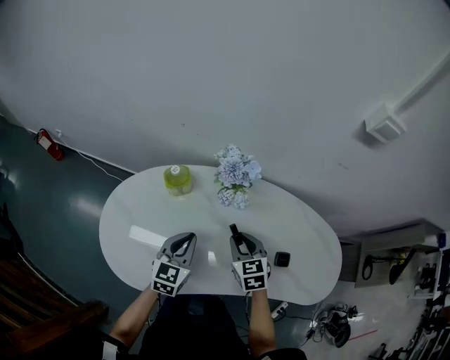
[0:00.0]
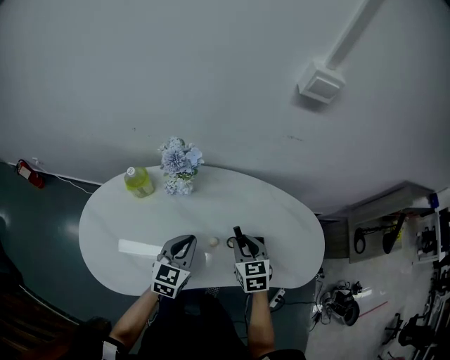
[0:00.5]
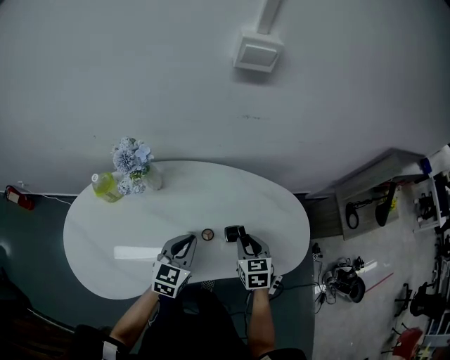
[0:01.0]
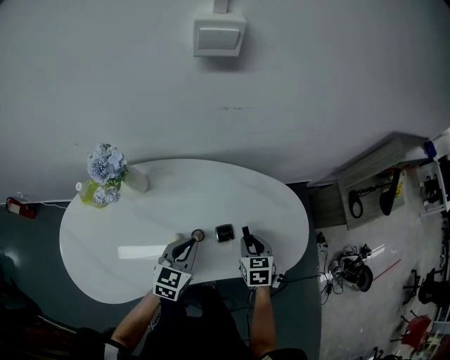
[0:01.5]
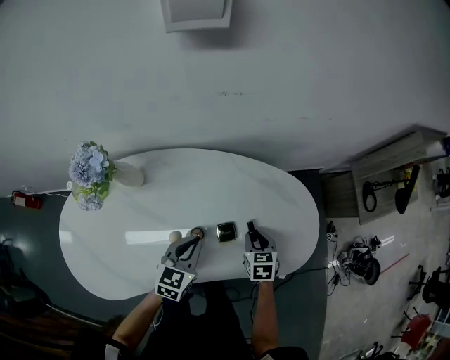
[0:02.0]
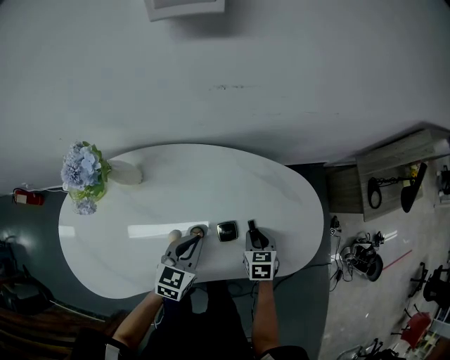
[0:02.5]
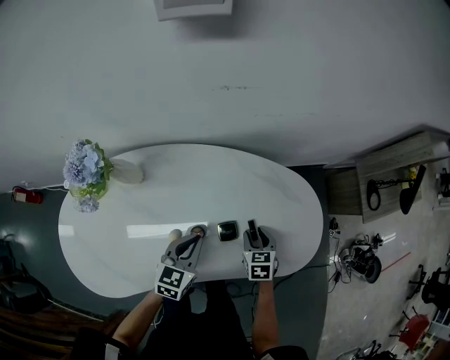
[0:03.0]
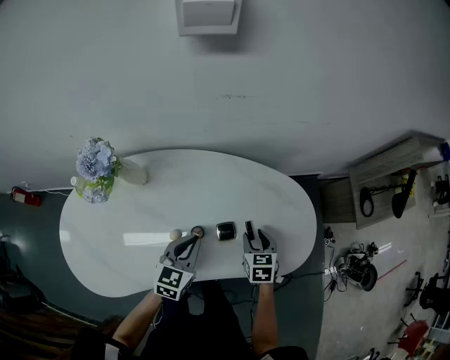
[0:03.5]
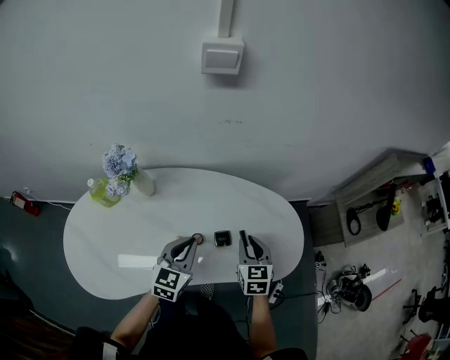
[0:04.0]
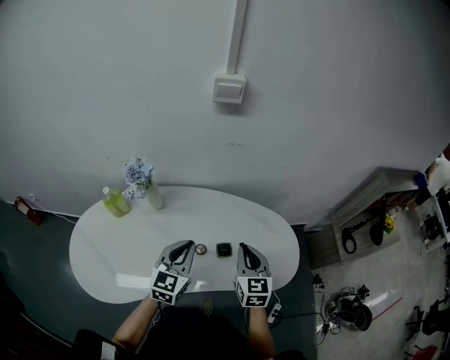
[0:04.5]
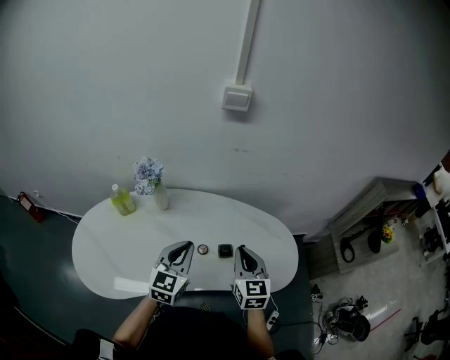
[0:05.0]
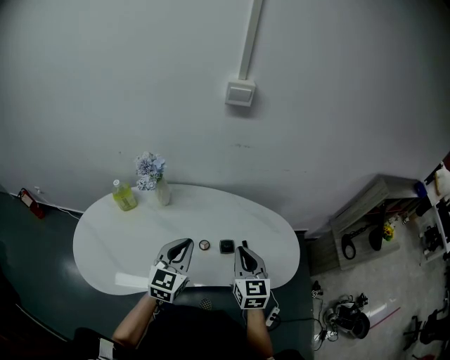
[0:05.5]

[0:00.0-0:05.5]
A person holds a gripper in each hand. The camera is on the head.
0:00.0 to 0:02.0: The right gripper moves approximately 40 cm, and rotates about 40 degrees. The left gripper changes place by some 35 cm, and turns by roughly 30 degrees.
0:02.0 to 0:03.5: The grippers stay close to where they were, moving slightly.
0:03.5 to 0:05.5: Both grippers move upward and backward, about 25 cm. The left gripper swivels some 20 degrees. The right gripper angles its fingers upward, by some 30 degrees, and closes its fingers.

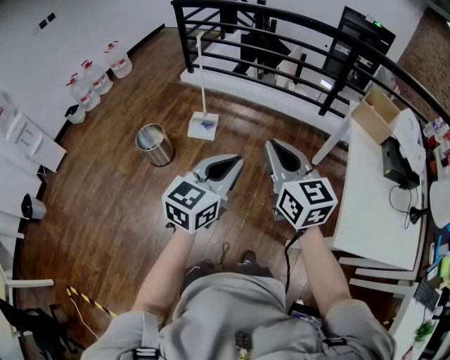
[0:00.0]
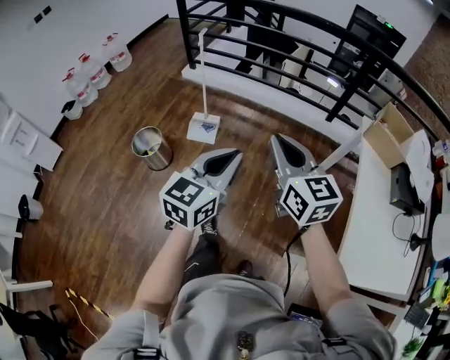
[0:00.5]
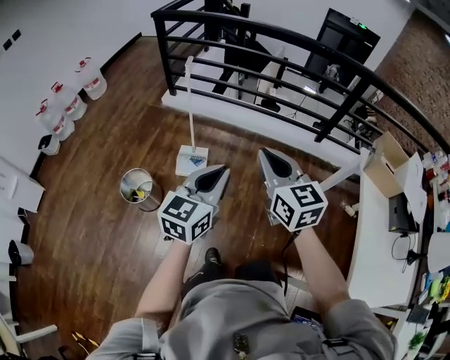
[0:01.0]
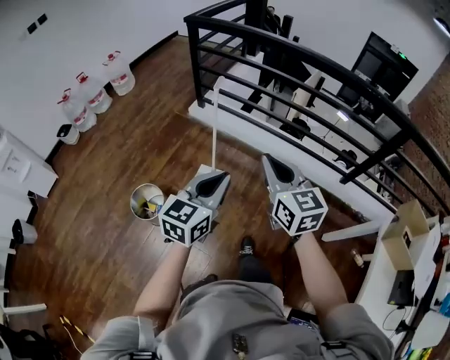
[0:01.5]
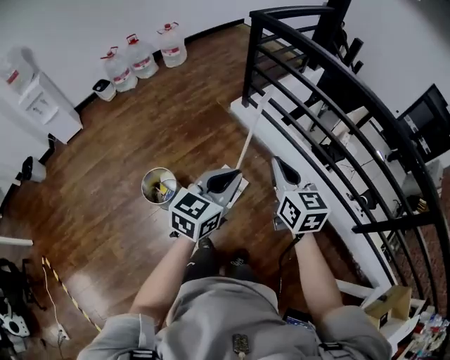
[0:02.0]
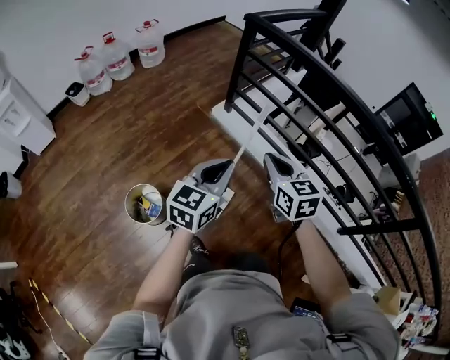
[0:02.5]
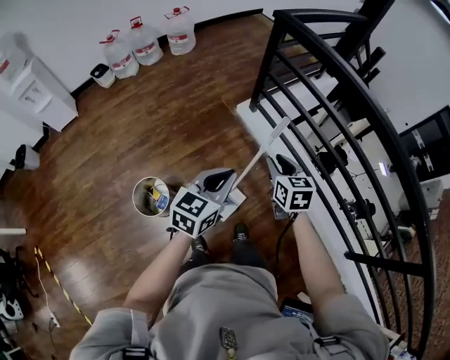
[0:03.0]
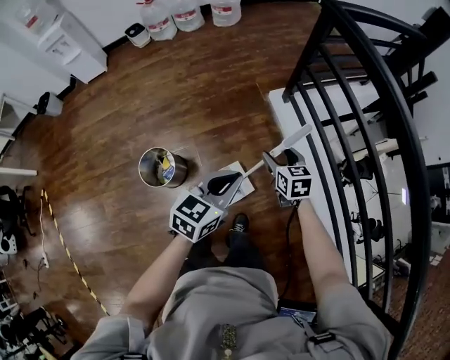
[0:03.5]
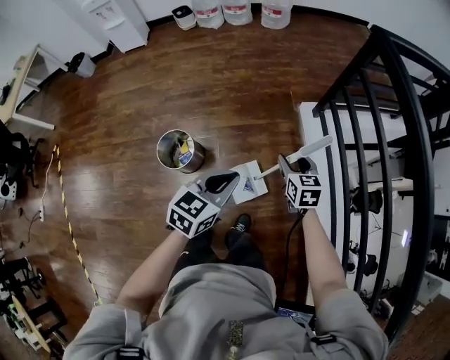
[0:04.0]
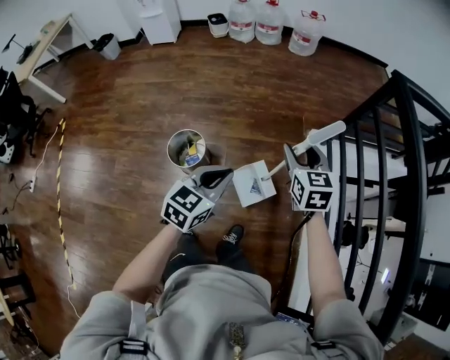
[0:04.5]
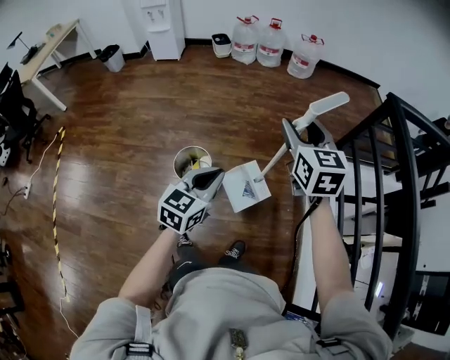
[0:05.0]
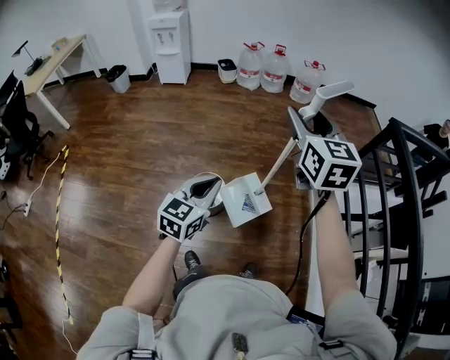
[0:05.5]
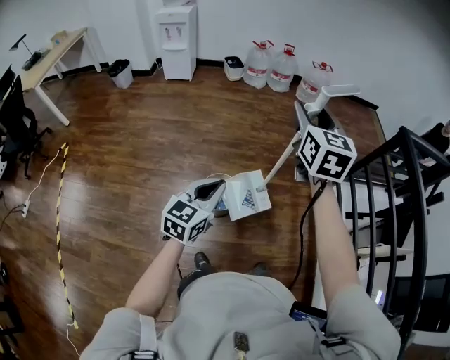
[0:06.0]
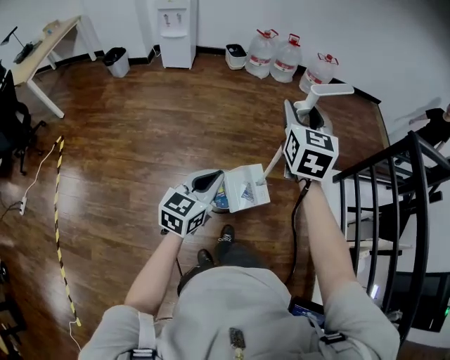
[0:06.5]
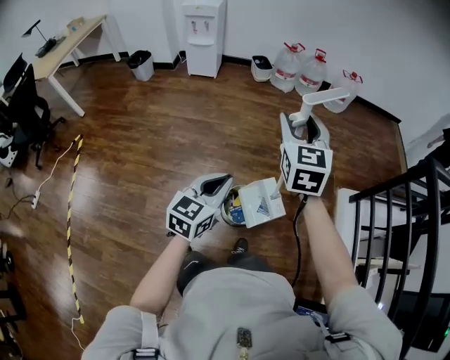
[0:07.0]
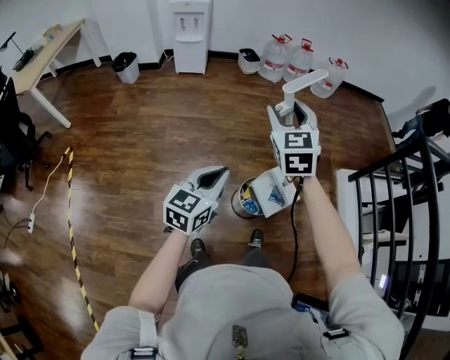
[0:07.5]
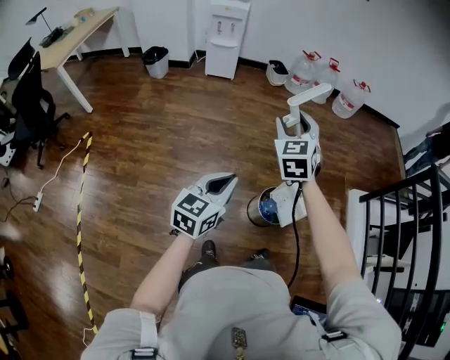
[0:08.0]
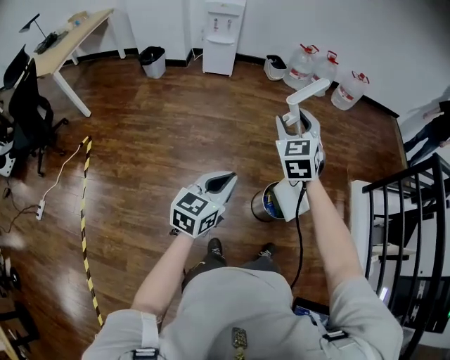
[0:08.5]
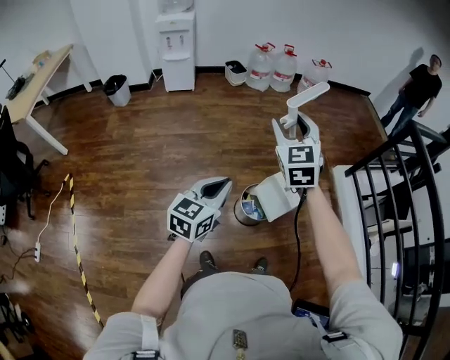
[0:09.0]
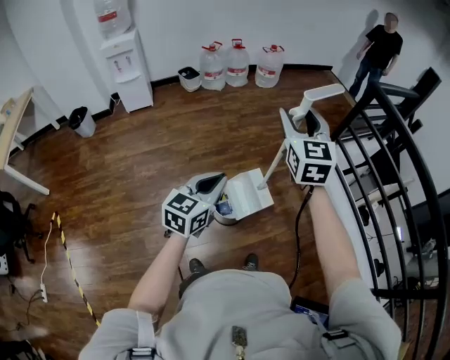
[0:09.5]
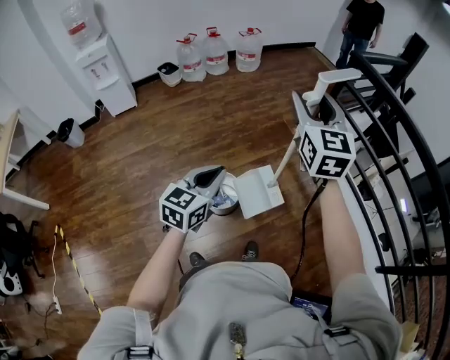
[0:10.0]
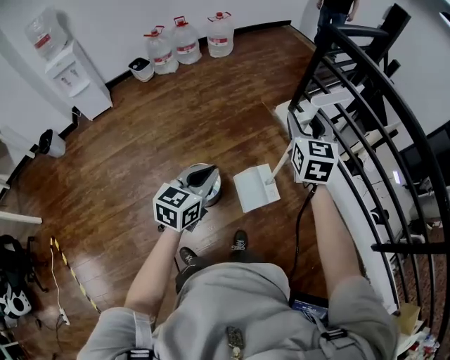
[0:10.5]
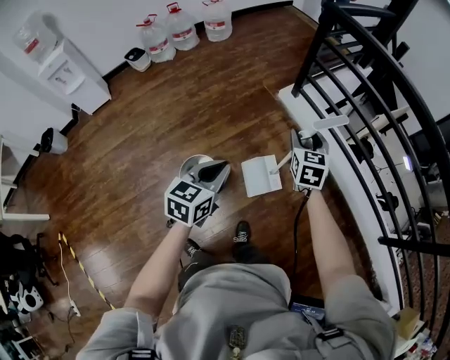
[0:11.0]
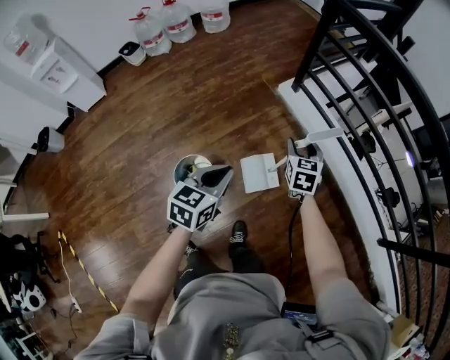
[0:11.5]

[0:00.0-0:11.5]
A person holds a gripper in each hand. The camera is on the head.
0:00.0 to 0:02.0: The pair of grippers is taken forward, some 70 cm. The left gripper turns by approximately 30 degrees. The right gripper swivels about 20 degrees.
0:02.0 to 0:04.0: The right gripper moves approximately 40 cm, rotates some 40 degrees, and opens up. The left gripper moves roughly 25 cm, and rotates roughly 30 degrees.
0:04.0 to 0:06.0: The pair of grippers is taken to the left, some 40 cm. The right gripper goes approximately 40 cm upward, and rotates about 30 degrees. The left gripper turns by about 20 degrees.
0:06.0 to 0:07.5: Both grippers travel together to the left, approximately 30 cm. The right gripper swivels some 20 degrees.
0:07.5 to 0:09.5: The left gripper goes some 15 cm to the right. The right gripper shifts some 25 cm to the right, and rotates roughly 20 degrees.
0:09.5 to 0:11.5: The right gripper moves to the right, downward and forward, some 50 cm, and changes its angle by roughly 40 degrees. The left gripper heads to the right, forward and downward, covering some 35 cm, and swivels about 20 degrees.

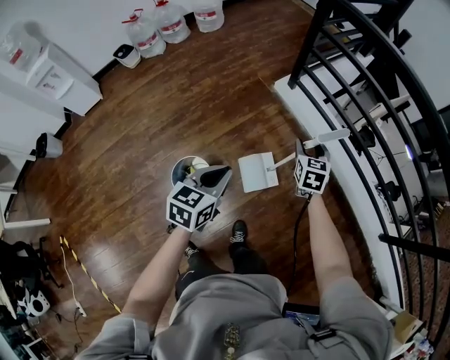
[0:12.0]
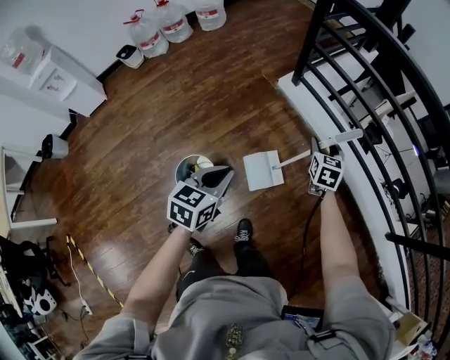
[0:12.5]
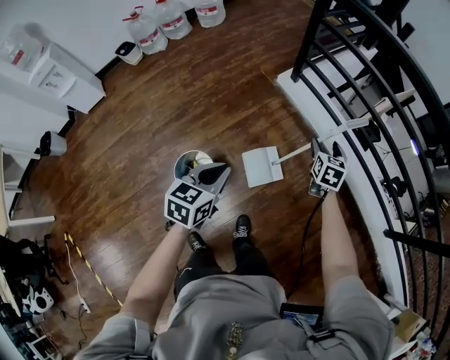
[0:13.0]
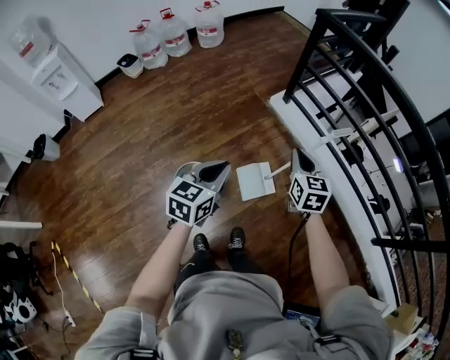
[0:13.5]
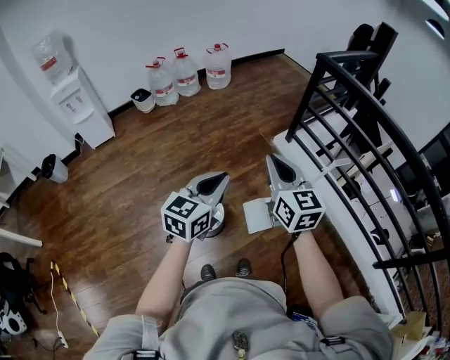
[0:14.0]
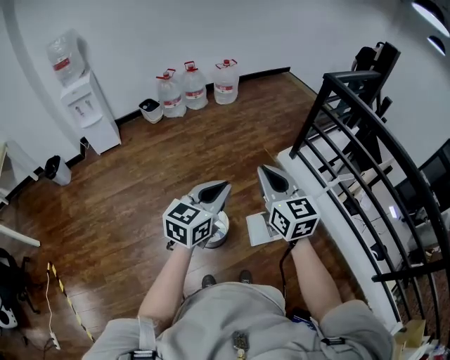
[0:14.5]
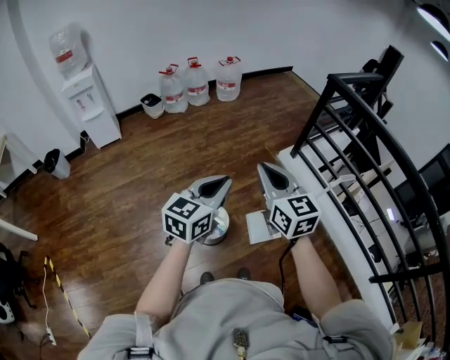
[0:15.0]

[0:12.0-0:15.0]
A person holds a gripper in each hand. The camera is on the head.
0:12.0 to 0:13.5: The right gripper heads upward, backward and to the left, covering approximately 15 cm, and closes. Meanwhile the left gripper goes about 5 cm upward.
0:13.5 to 0:15.0: The left gripper heads upward and to the left, covering approximately 20 cm; the right gripper moves to the left and upward, about 30 cm, and rotates roughly 30 degrees.

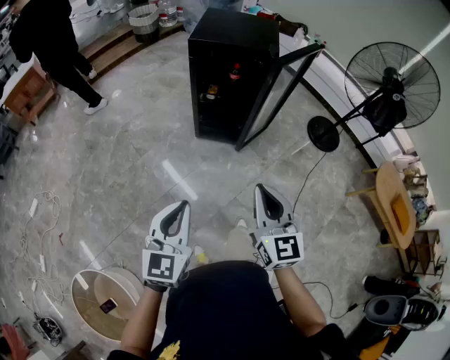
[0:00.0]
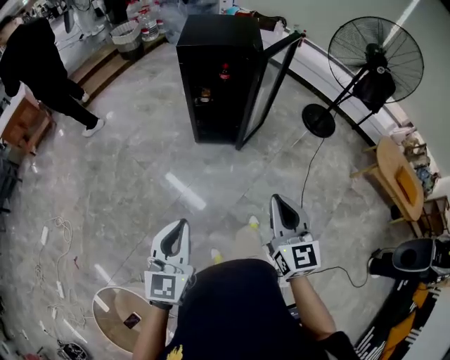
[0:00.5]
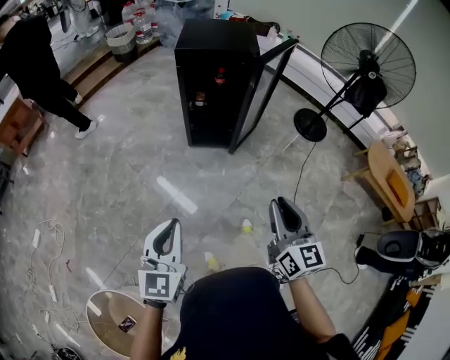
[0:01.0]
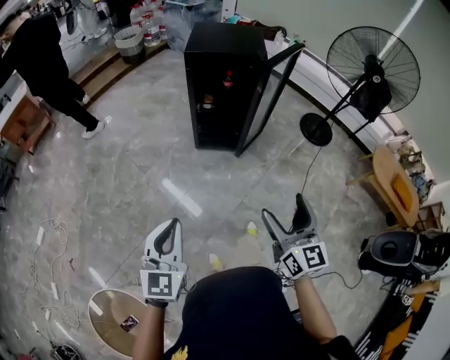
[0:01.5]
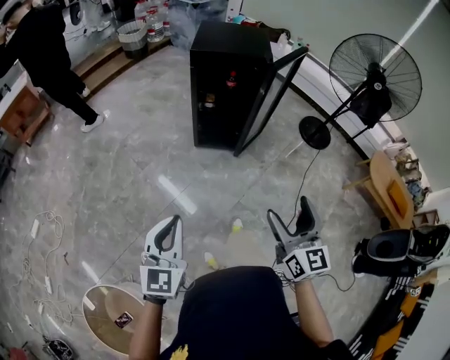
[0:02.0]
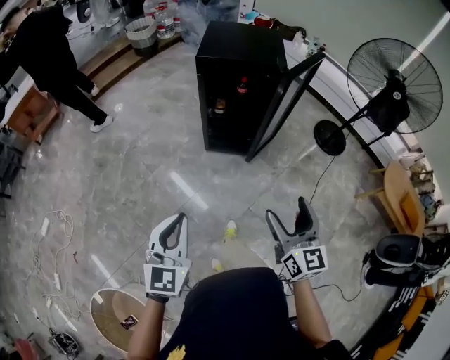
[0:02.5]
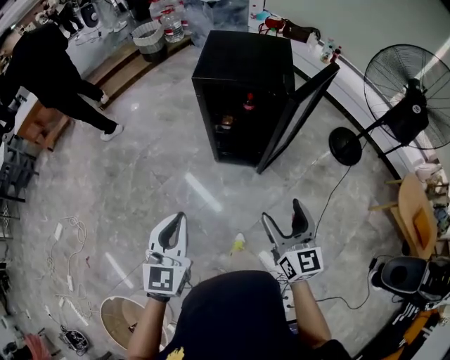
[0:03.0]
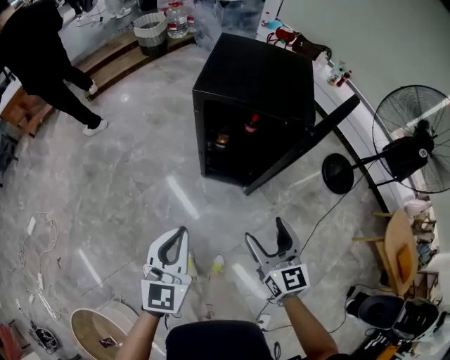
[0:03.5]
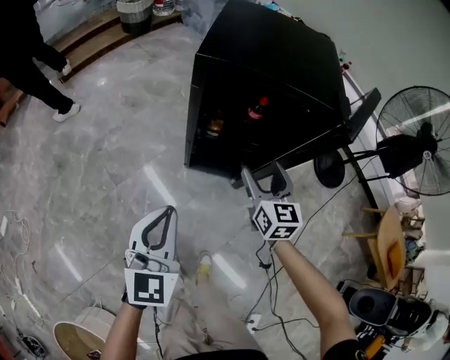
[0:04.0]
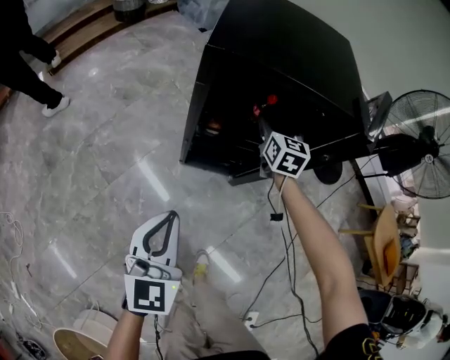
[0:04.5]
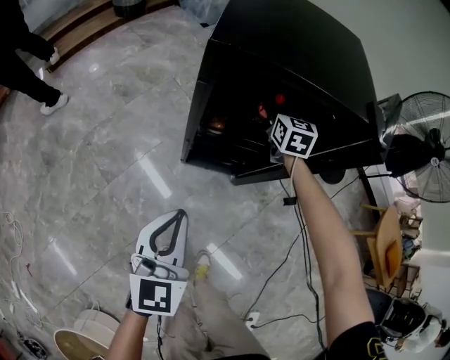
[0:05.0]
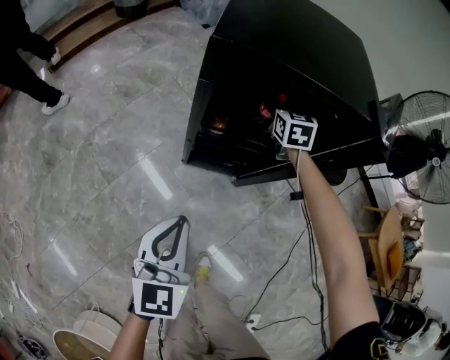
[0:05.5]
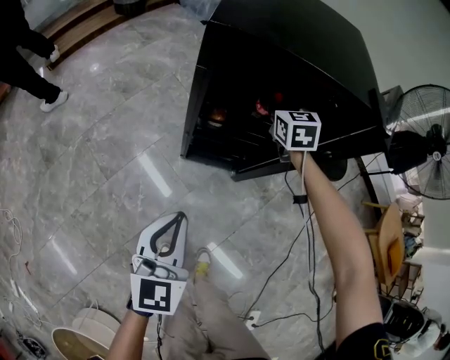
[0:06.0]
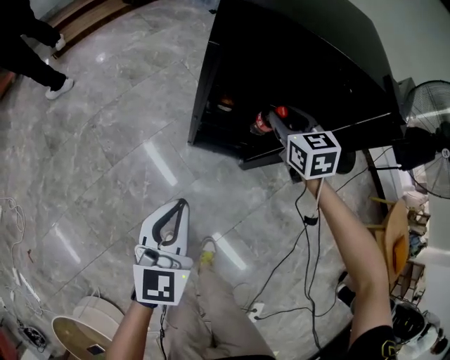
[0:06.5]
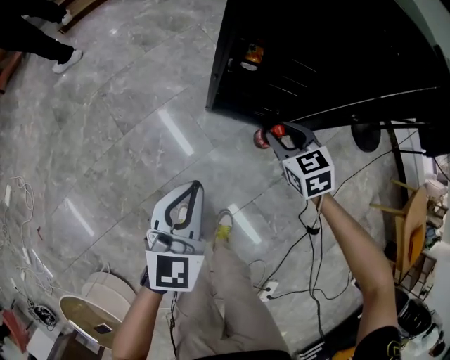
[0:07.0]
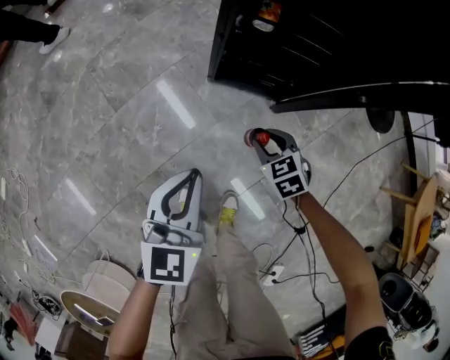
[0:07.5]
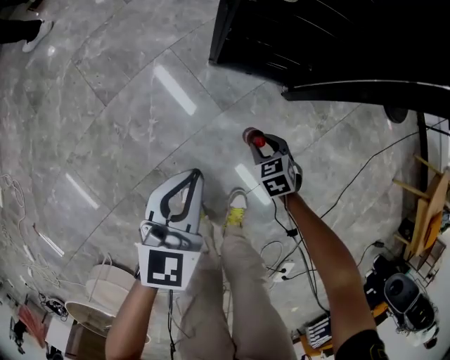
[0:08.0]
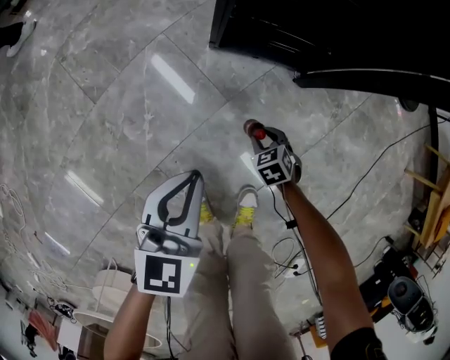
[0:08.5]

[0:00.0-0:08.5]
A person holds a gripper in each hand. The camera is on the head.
0:00.0 to 0:02.0: The left gripper shifts some 10 cm to the left and backward. Meanwhile the right gripper is displaced backward by about 10 cm, and opens.
0:02.0 to 0:04.0: The pair of grippers is taken forward, approximately 50 cm. The right gripper is displaced downward by approximately 25 cm.
0:04.0 to 0:06.5: The left gripper heads downward, covering some 10 cm, while the right gripper heads forward and downward, covering some 15 cm, rotates approximately 20 degrees, and closes its fingers.
0:06.5 to 0:08.5: The right gripper travels downward by about 60 cm, and points its fingers roughly 40 degrees further downward. The left gripper moves downward, some 40 cm, and rotates some 20 degrees.
